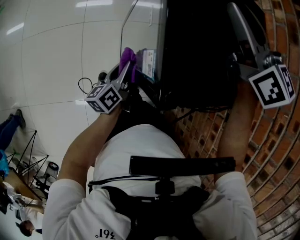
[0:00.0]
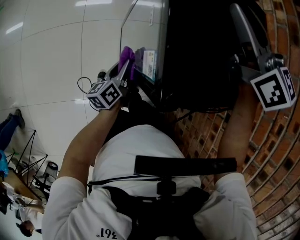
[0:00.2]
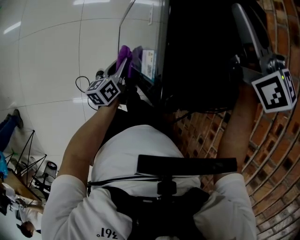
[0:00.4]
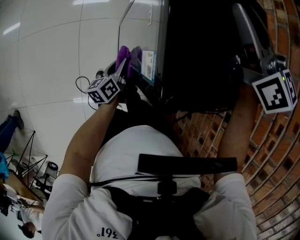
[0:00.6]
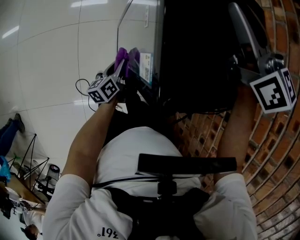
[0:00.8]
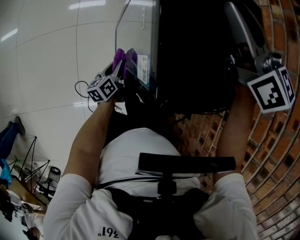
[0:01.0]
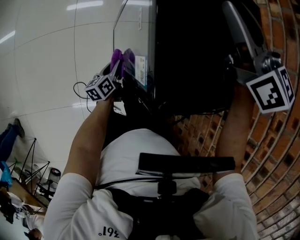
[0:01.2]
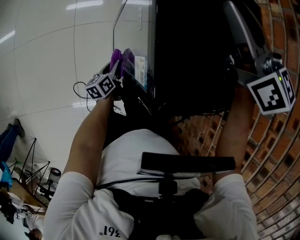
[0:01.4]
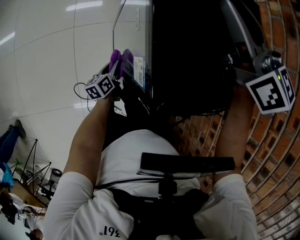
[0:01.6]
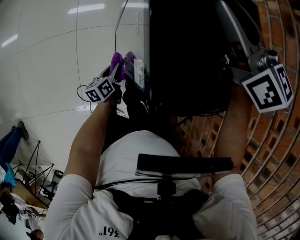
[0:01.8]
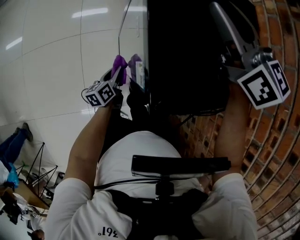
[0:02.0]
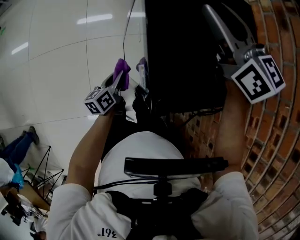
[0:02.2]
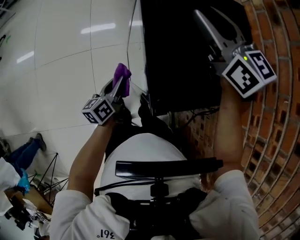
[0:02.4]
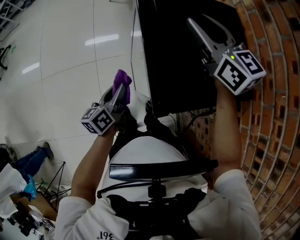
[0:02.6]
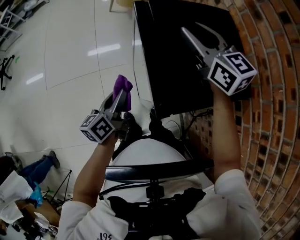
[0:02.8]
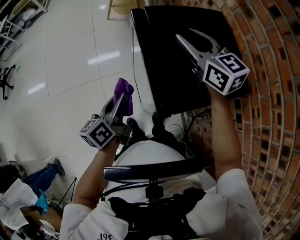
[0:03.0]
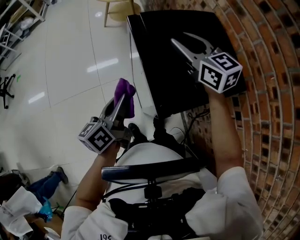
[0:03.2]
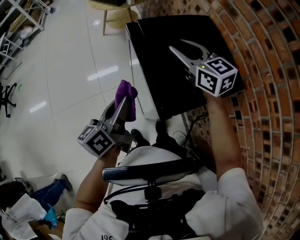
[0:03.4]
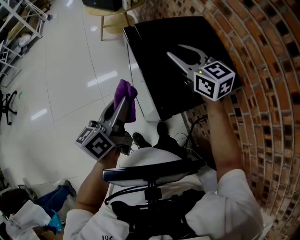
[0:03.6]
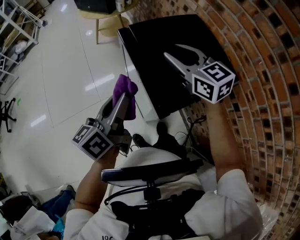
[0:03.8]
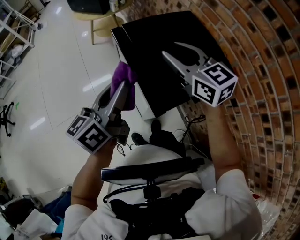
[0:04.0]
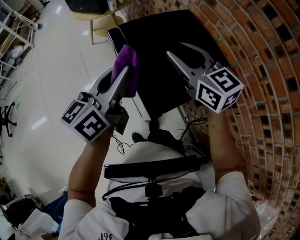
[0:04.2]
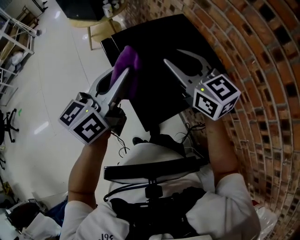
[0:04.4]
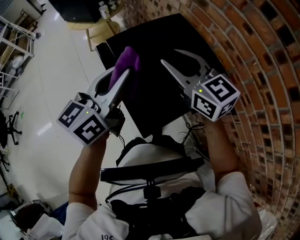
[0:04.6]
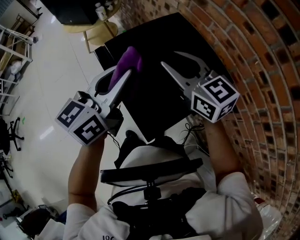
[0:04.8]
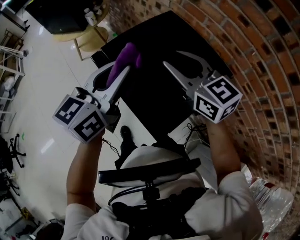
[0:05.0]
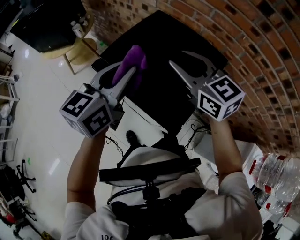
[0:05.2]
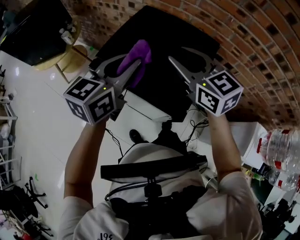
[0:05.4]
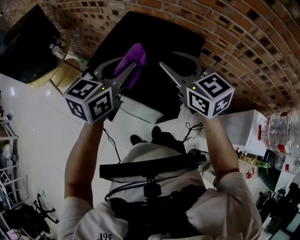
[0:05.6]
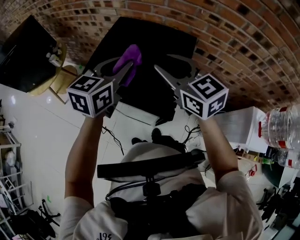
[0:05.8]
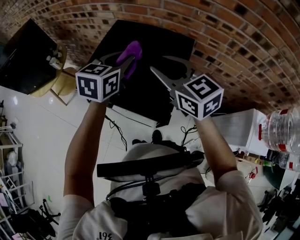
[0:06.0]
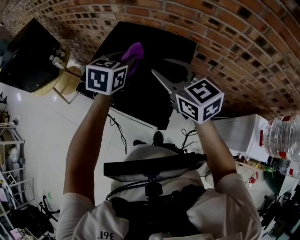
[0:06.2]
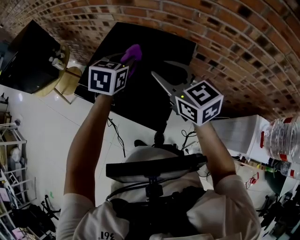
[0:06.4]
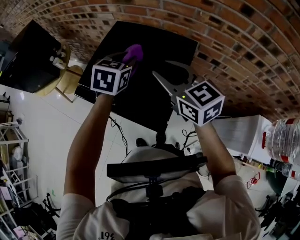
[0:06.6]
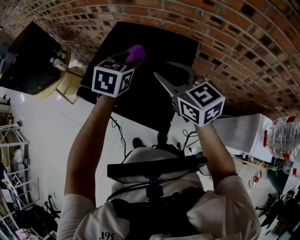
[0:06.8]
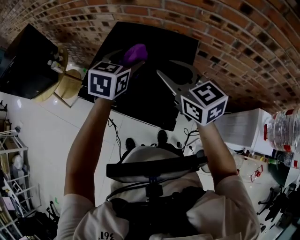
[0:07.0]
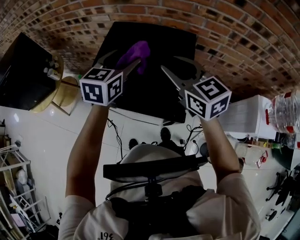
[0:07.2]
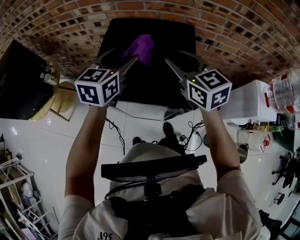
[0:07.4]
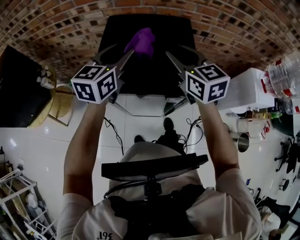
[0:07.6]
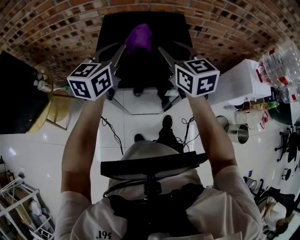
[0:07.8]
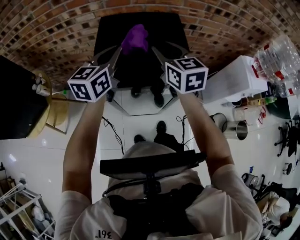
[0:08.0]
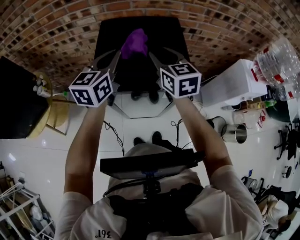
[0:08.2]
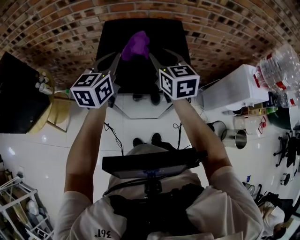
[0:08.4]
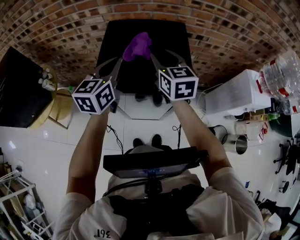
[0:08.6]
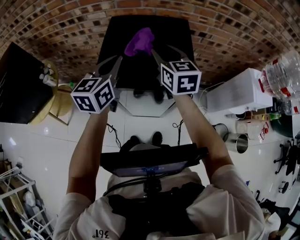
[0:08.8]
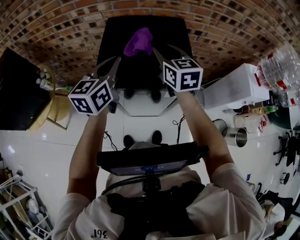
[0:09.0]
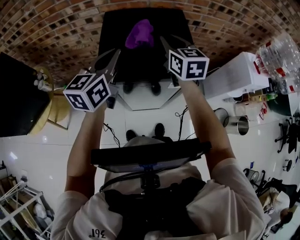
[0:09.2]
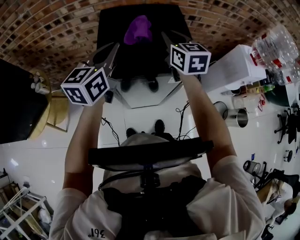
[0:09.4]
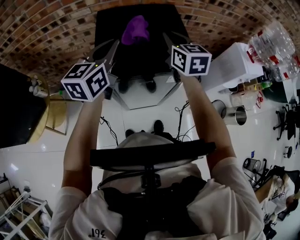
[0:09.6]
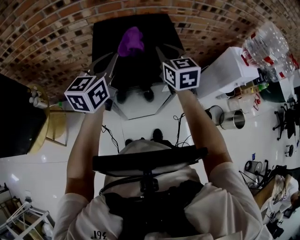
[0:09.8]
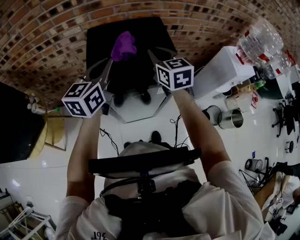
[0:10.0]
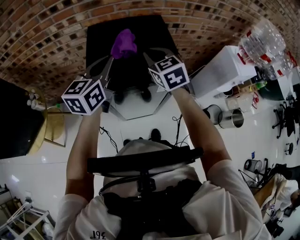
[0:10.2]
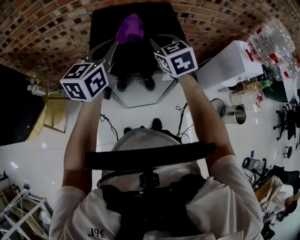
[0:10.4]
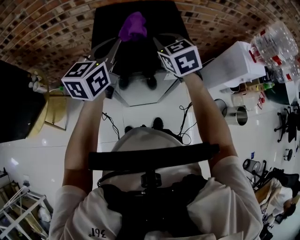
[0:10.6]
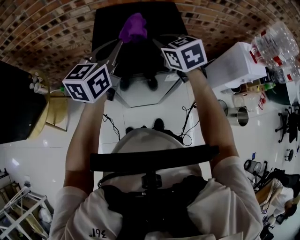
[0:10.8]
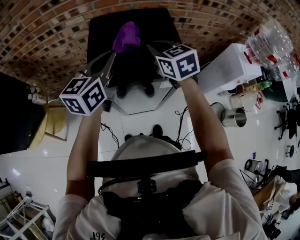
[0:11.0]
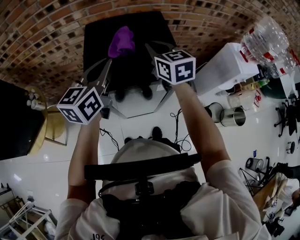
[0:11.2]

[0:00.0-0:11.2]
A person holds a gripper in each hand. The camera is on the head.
0:00.0 to 0:01.6: The left gripper goes approximately 15 cm downward.
0:01.6 to 0:03.2: The left gripper moves upward, about 35 cm, and changes its angle by roughly 30 degrees.
0:03.2 to 0:04.8: The right gripper shifts approximately 5 cm to the right; the left gripper travels upward, forward and to the right by about 25 cm, and swivels about 40 degrees.
0:04.8 to 0:06.4: The right gripper ends up roughly 10 cm from where it was, and rotates roughly 30 degrees; the left gripper moves approximately 20 cm, and swivels some 50 degrees.
0:06.4 to 0:08.0: The left gripper shifts by some 10 cm, rotates some 40 degrees, and closes, while the right gripper shifts by approximately 5 cm, and swivels roughly 40 degrees.
0:08.0 to 0:09.6: The right gripper closes.

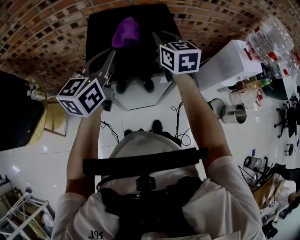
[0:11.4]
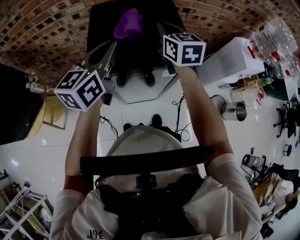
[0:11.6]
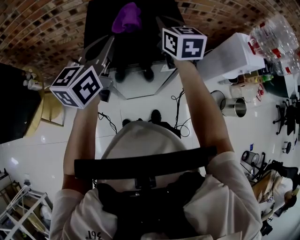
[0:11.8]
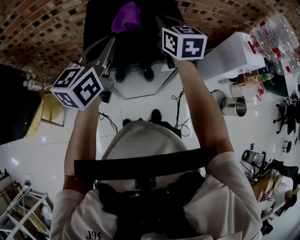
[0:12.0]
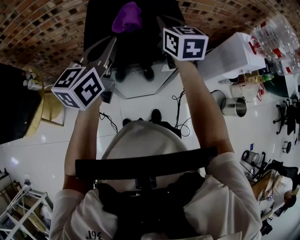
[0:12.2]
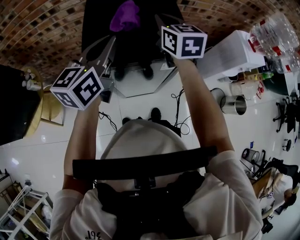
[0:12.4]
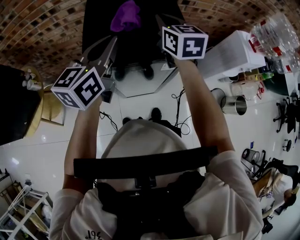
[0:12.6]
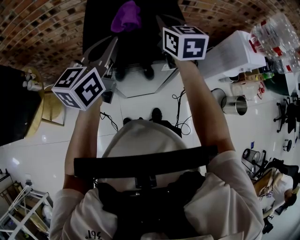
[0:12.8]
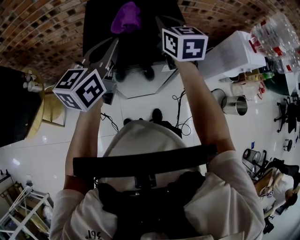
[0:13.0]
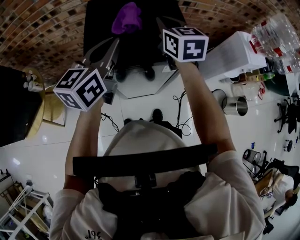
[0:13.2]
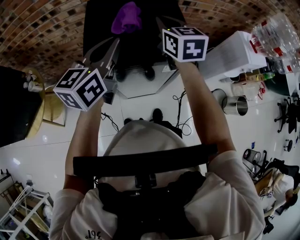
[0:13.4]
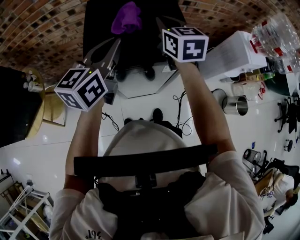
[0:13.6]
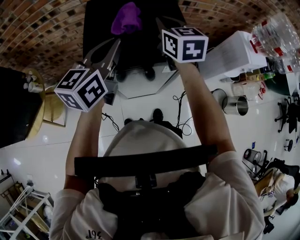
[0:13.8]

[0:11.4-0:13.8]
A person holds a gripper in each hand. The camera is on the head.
0:11.4 to 0:12.6: The two grippers keep their place.
0:12.6 to 0:13.8: The two grippers keep their place.

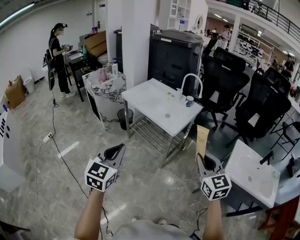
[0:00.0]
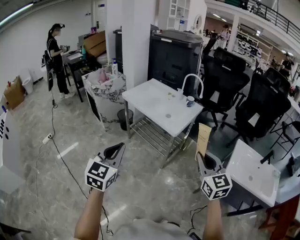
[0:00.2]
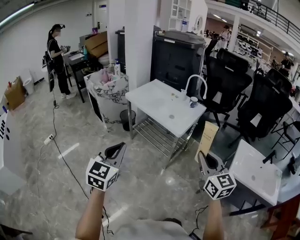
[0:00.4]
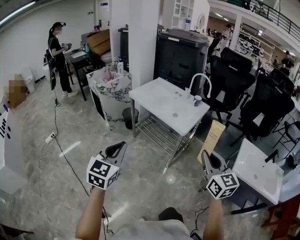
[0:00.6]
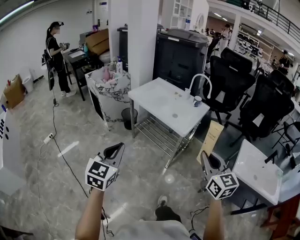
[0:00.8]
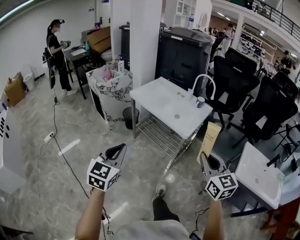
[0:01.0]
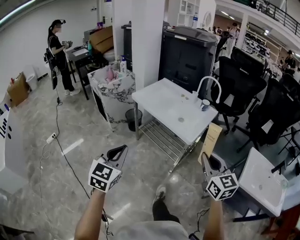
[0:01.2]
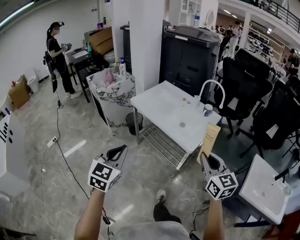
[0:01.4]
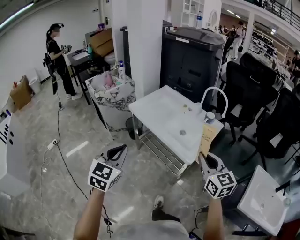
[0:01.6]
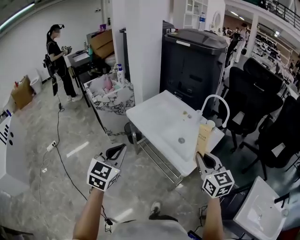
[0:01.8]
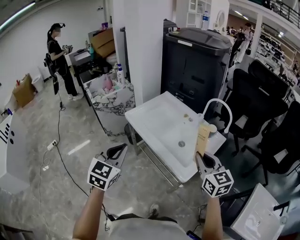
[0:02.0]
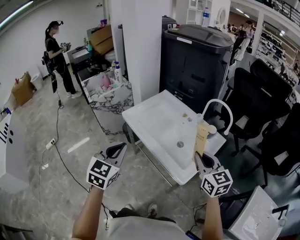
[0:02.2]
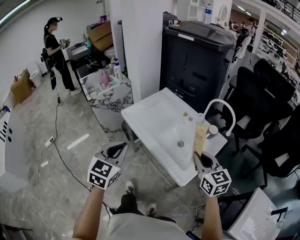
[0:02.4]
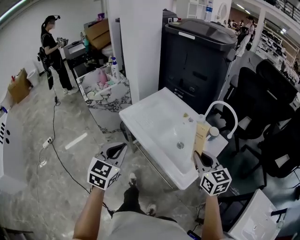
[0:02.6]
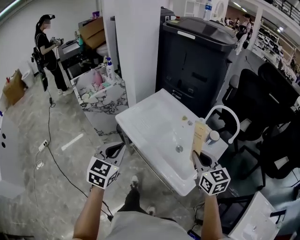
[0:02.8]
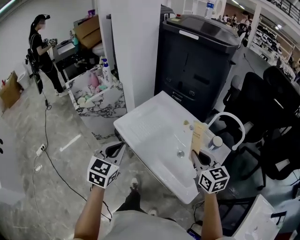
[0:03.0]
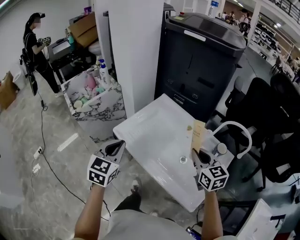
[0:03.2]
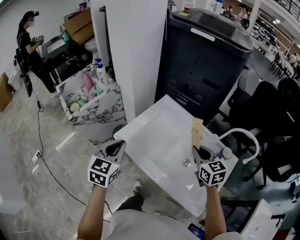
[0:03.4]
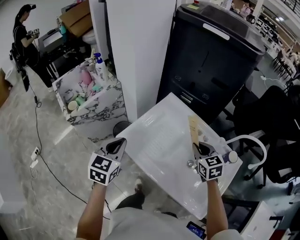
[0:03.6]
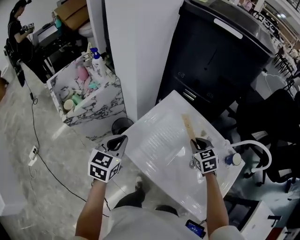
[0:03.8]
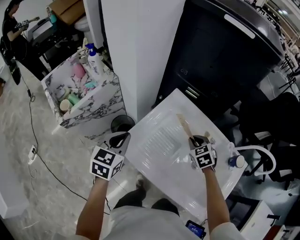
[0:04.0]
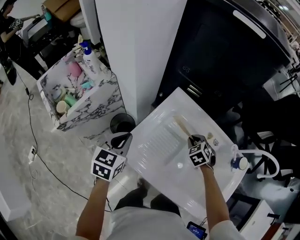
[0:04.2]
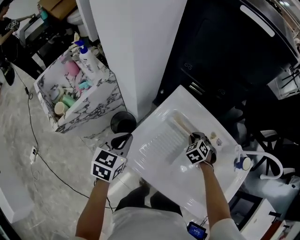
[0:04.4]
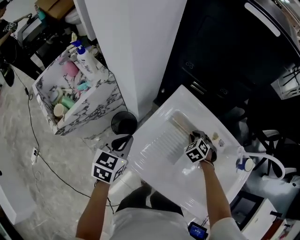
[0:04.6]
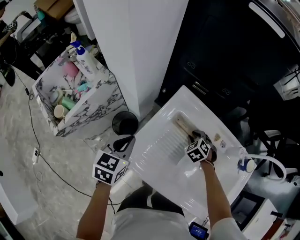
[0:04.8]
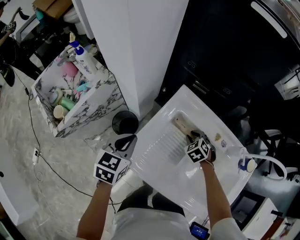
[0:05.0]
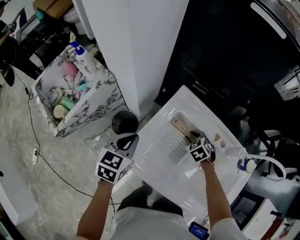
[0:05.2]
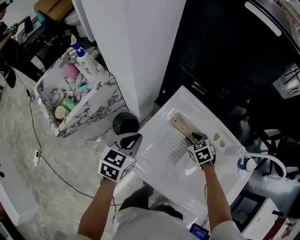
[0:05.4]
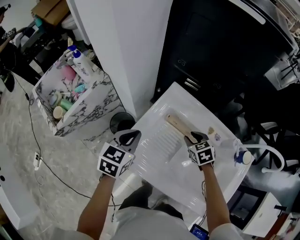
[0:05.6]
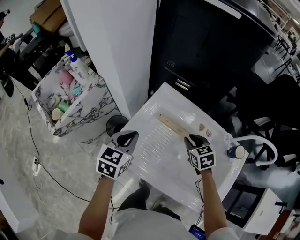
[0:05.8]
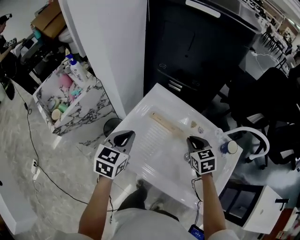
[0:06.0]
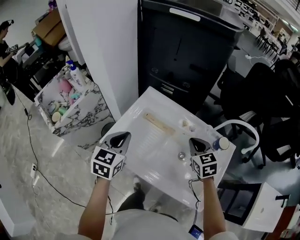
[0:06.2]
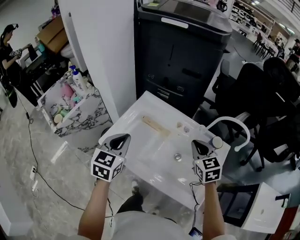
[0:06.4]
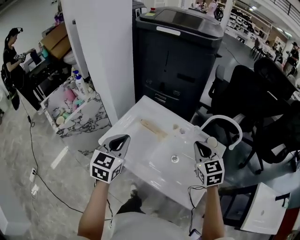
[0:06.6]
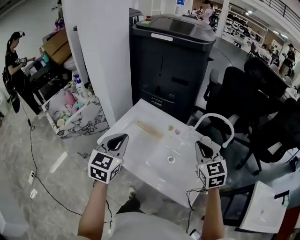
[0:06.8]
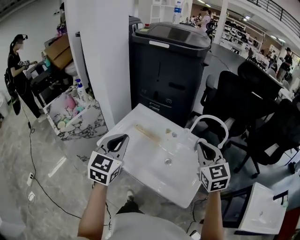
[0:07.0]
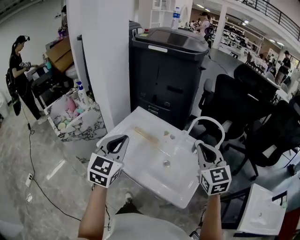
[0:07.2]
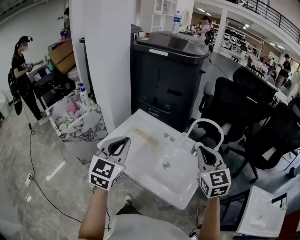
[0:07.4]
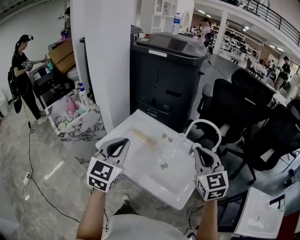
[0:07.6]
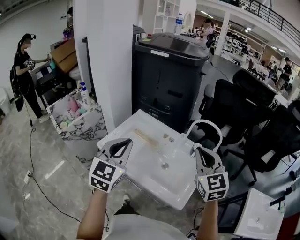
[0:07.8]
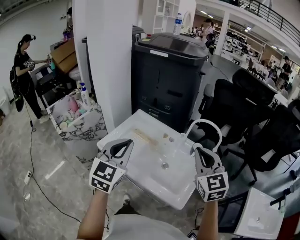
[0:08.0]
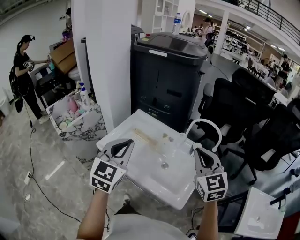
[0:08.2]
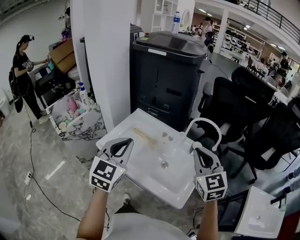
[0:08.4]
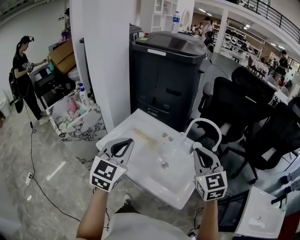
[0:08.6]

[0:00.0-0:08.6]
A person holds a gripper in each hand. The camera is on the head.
0:00.0 to 0:01.4: The two grippers go some 20 cm forward and to the left.
0:01.4 to 0:02.8: Both grippers move forward, approximately 35 cm.
0:02.8 to 0:04.4: The grippers both shift forward and downward by approximately 40 cm. The right gripper angles its fingers downward, by roughly 50 degrees. The left gripper turns by about 20 degrees.
0:04.4 to 0:05.8: The left gripper heads to the right, covering some 10 cm. The right gripper goes roughly 10 cm upward and backward, and rotates some 40 degrees.
0:05.8 to 0:07.2: The grippers both shift upward, backward and to the right by approximately 40 cm. The right gripper tips its fingers upward by approximately 40 degrees, and closes its fingers; the left gripper changes its angle by about 30 degrees.
0:07.2 to 0:08.6: The left gripper changes place by about 5 cm.

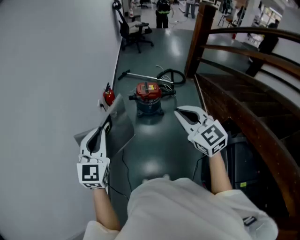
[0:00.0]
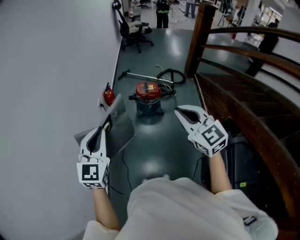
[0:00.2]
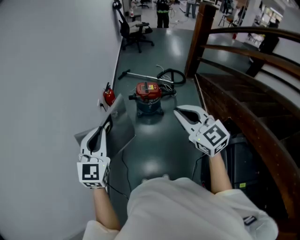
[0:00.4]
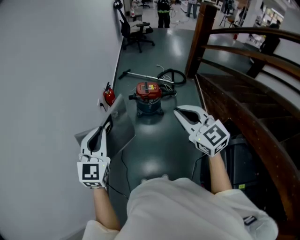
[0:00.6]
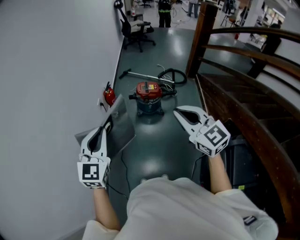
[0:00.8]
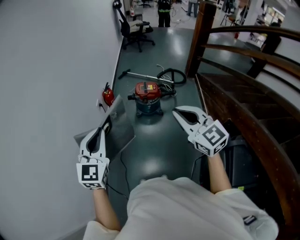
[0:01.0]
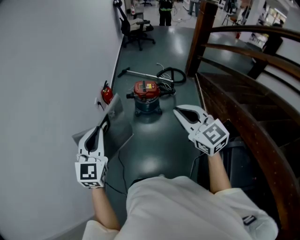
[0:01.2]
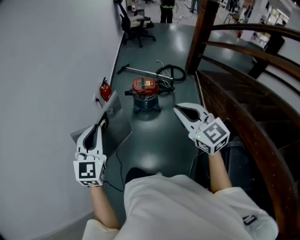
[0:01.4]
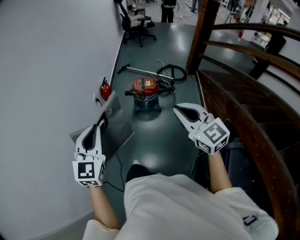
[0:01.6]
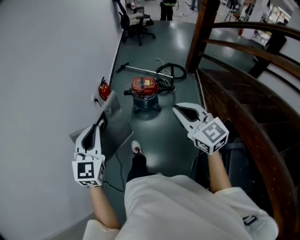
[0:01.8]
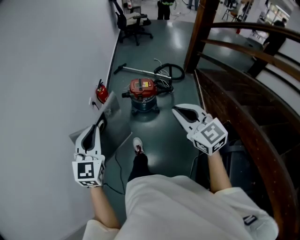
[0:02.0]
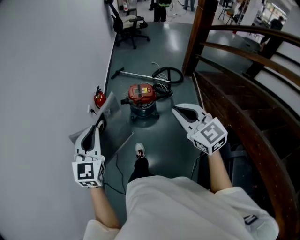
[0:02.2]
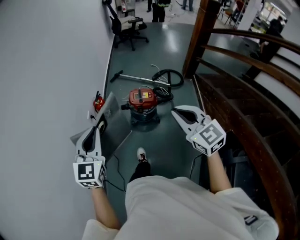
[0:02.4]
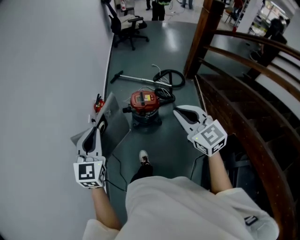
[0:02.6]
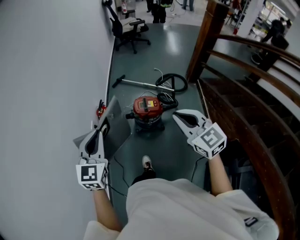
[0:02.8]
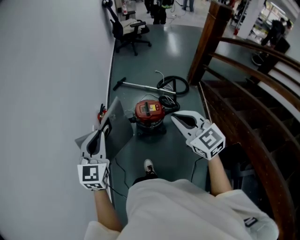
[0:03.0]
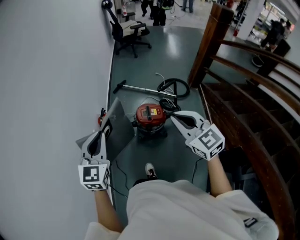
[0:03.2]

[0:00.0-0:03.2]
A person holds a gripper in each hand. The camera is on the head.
0:00.0 to 0:01.6: Both grippers travel together to the right, some 5 cm.
0:01.6 to 0:03.2: The two grippers go roughly 35 cm forward.
